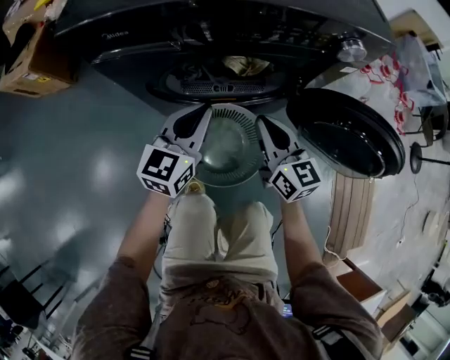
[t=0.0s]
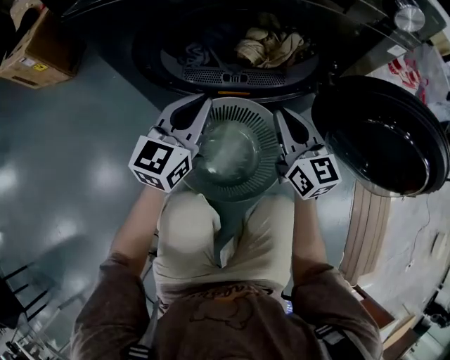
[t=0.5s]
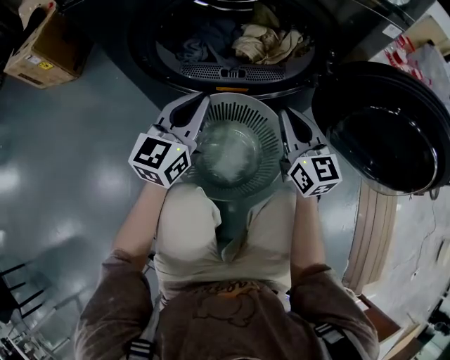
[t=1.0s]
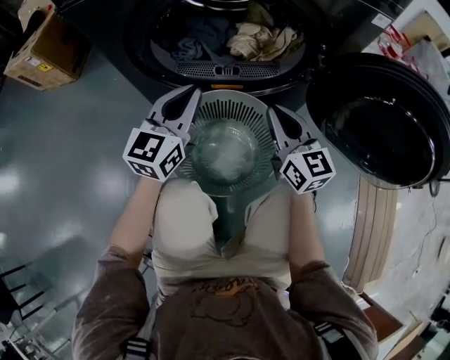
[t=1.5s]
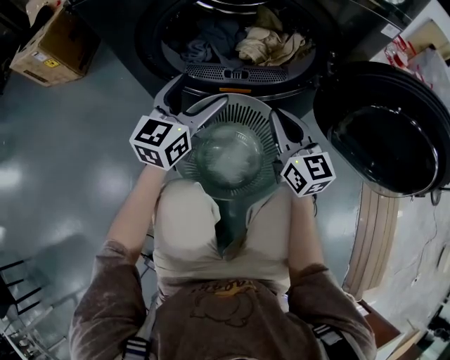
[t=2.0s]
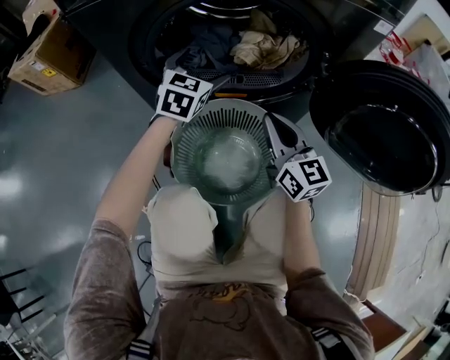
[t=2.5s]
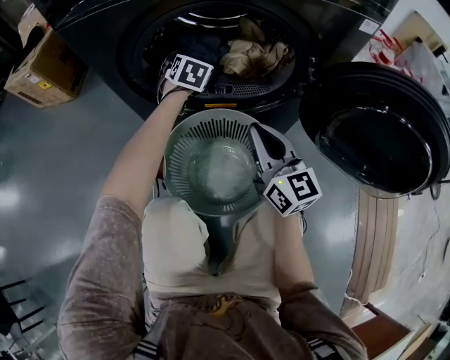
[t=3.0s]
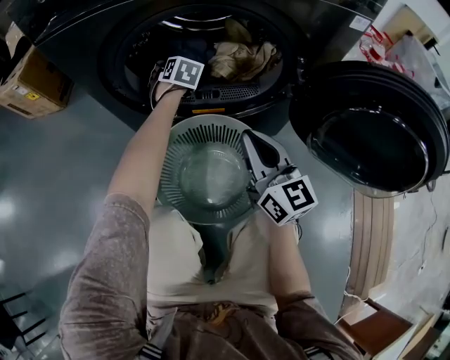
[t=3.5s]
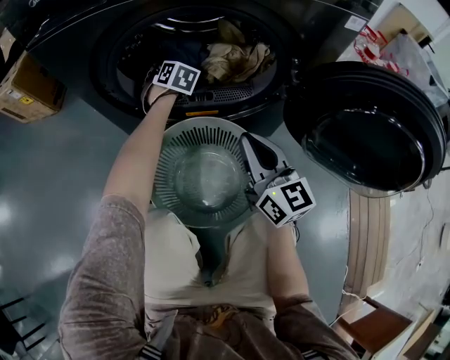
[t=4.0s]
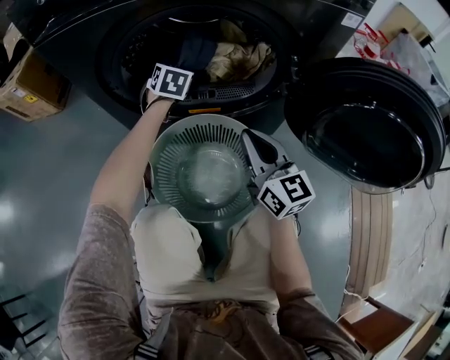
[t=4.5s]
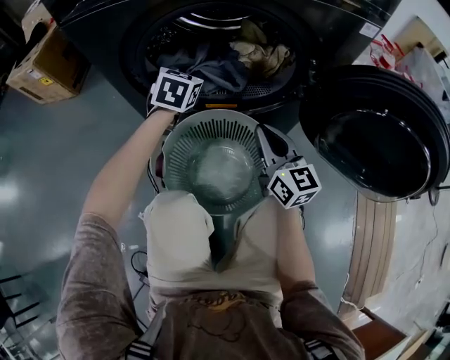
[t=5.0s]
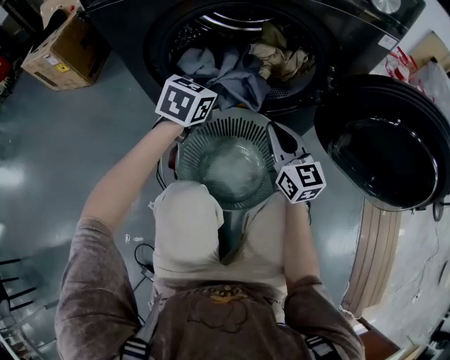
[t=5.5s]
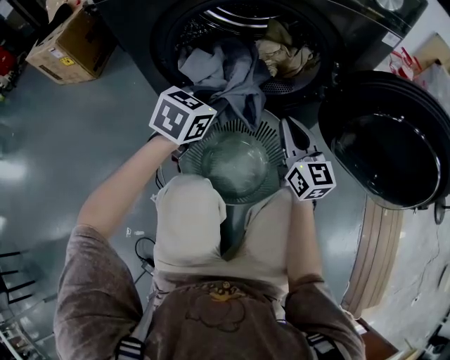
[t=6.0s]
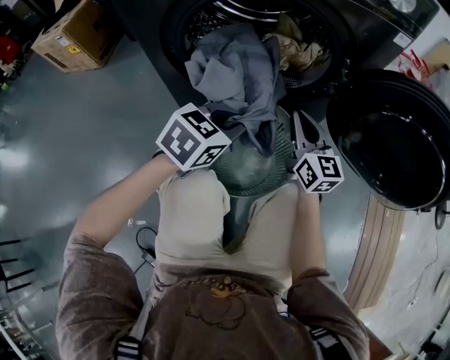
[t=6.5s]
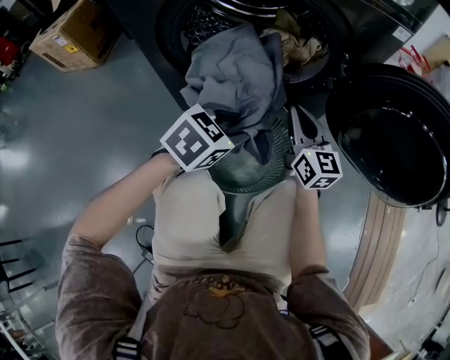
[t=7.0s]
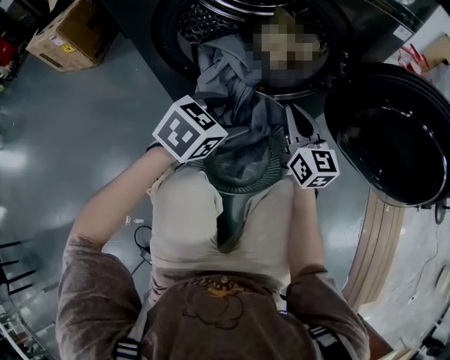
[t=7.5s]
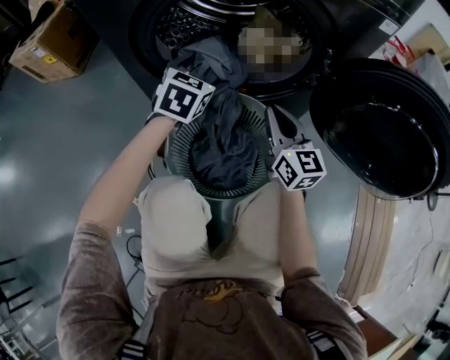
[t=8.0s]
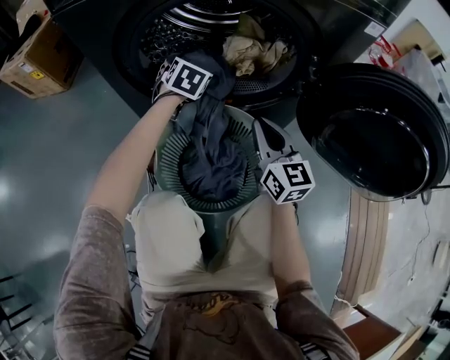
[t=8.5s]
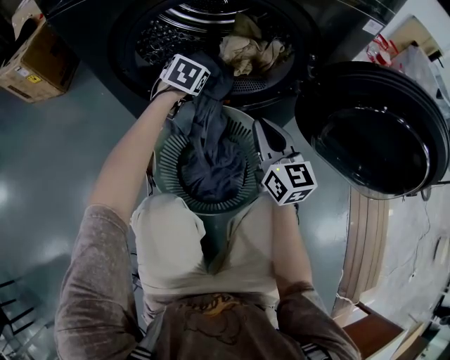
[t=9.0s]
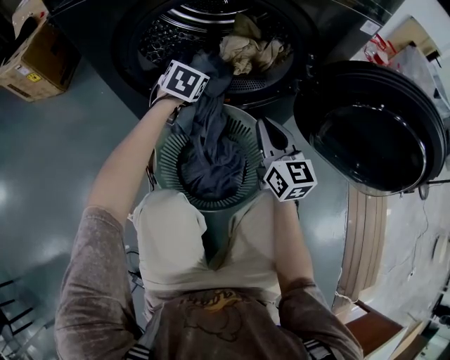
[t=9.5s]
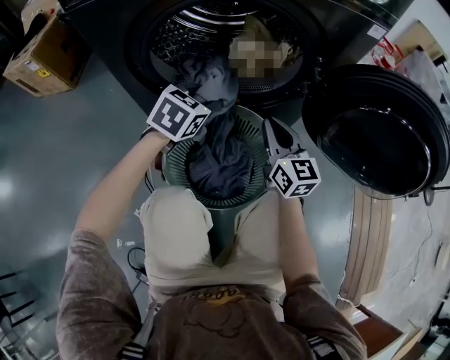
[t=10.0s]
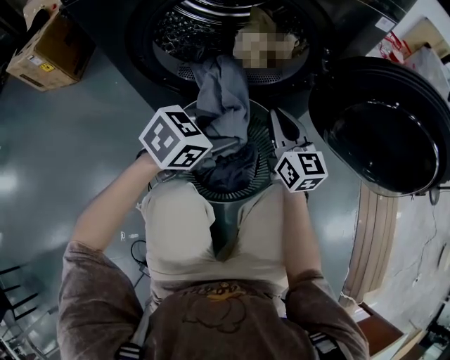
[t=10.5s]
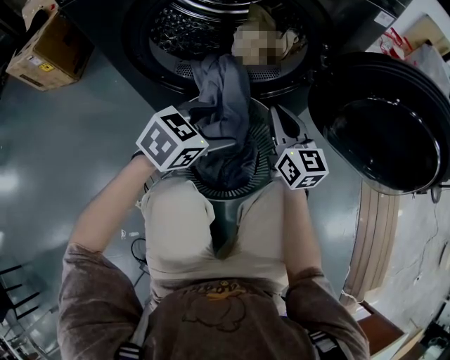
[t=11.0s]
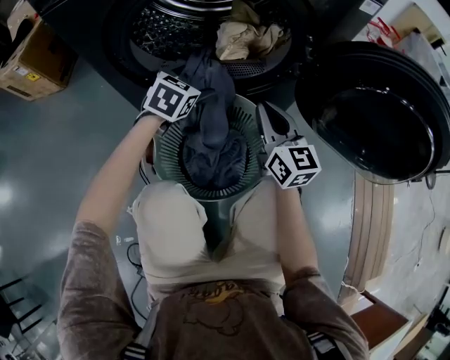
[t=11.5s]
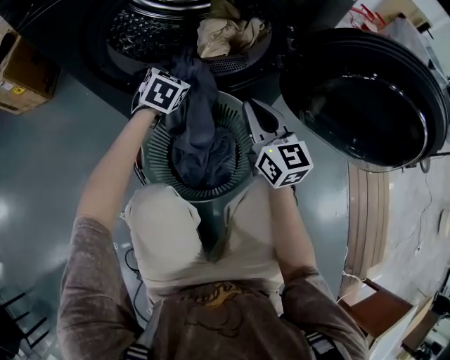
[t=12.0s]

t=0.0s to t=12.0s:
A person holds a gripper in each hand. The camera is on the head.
t=0.0s to t=2.0s: The grippers both shift downward by approximately 15 cm. The left gripper opens its fingers.
t=2.0s to t=4.0s: The left gripper travels forward and downward by approximately 25 cm, tilts its fingers about 40 degrees downward, and closes up.
t=4.0s to t=6.0s: The left gripper moves backward and upward, roughly 25 cm, and turns by about 40 degrees.
t=6.0s to t=8.0s: The left gripper is displaced forward by approximately 5 cm, and opens up.
t=8.0s to t=10.0s: The left gripper moves about 10 cm forward and comes back, and closes.
t=10.0s to t=12.0s: The left gripper is displaced forward and downward by some 10 cm, and opens.

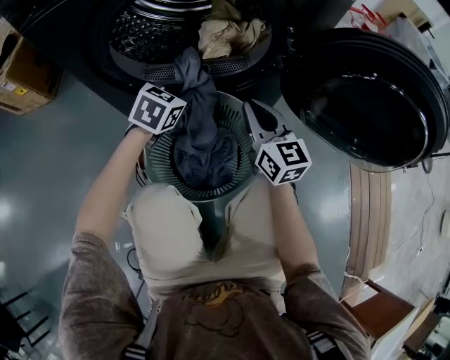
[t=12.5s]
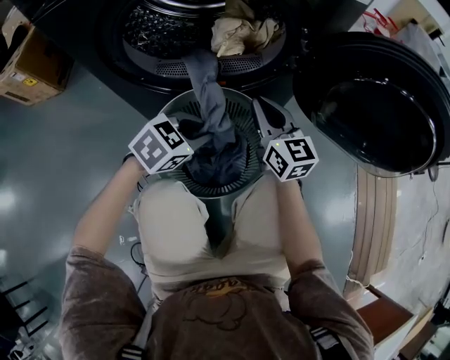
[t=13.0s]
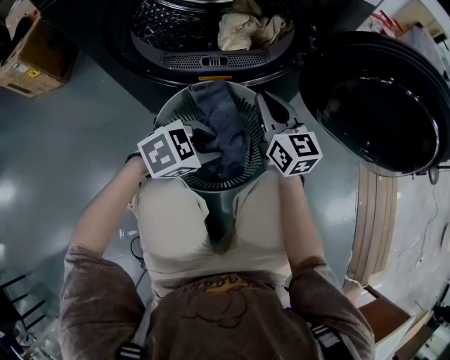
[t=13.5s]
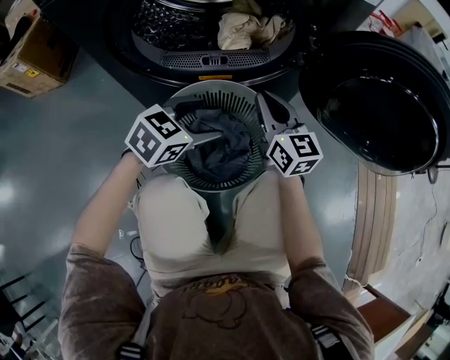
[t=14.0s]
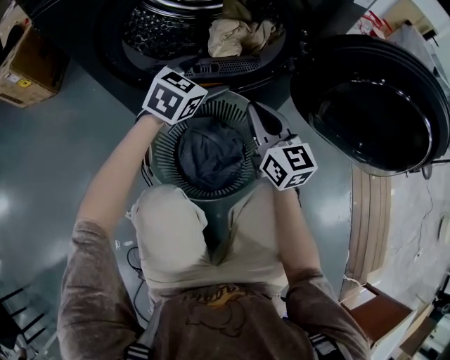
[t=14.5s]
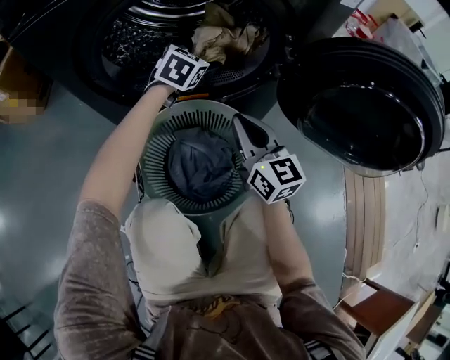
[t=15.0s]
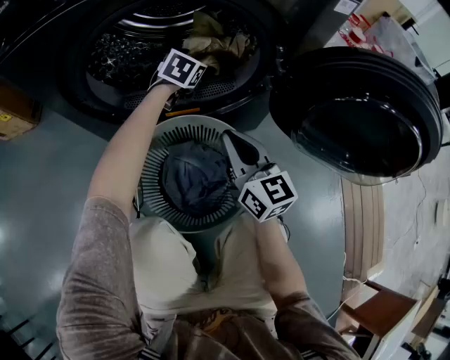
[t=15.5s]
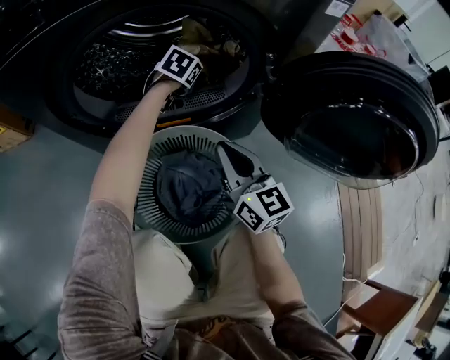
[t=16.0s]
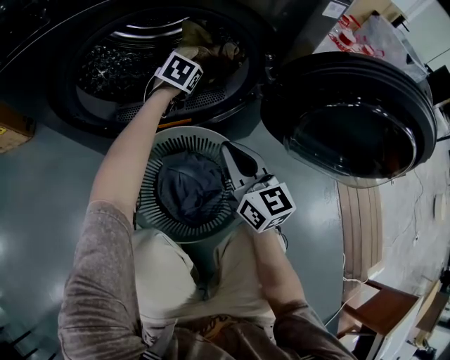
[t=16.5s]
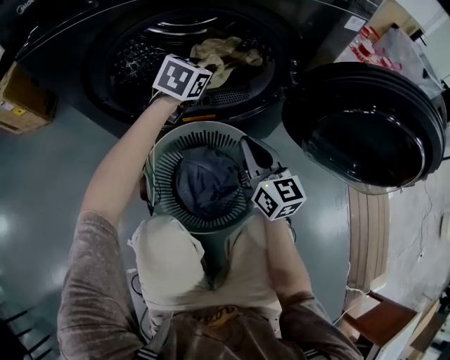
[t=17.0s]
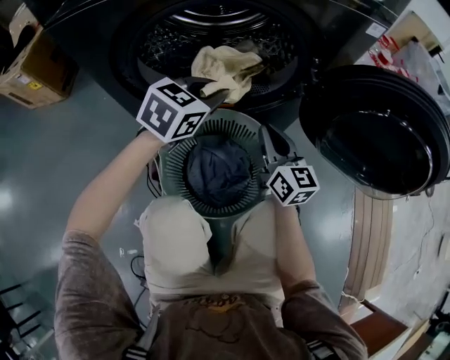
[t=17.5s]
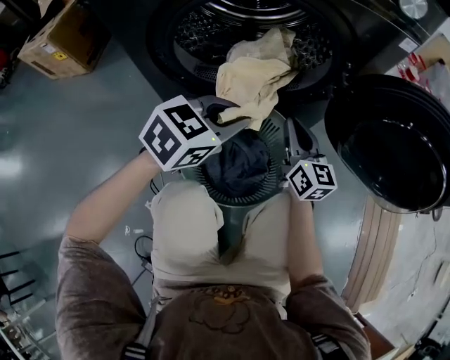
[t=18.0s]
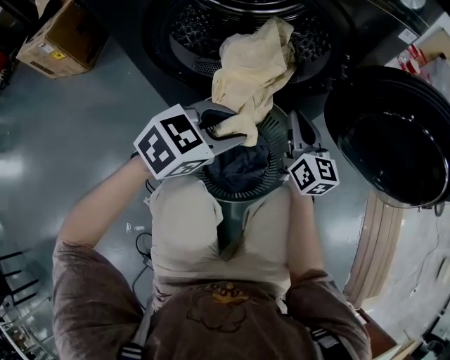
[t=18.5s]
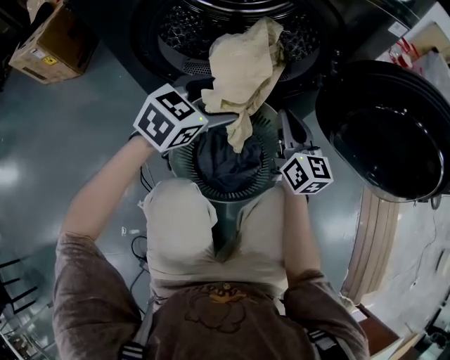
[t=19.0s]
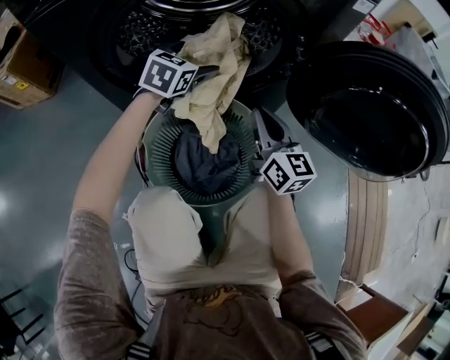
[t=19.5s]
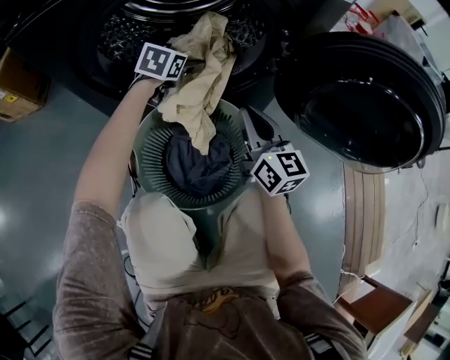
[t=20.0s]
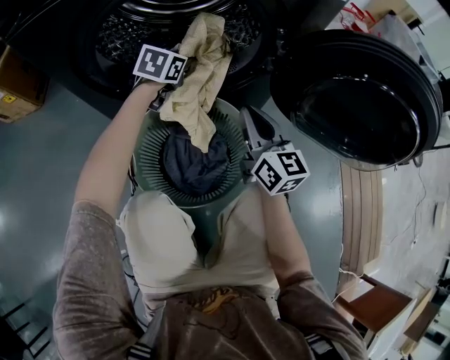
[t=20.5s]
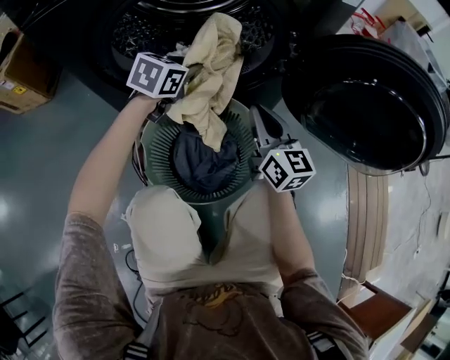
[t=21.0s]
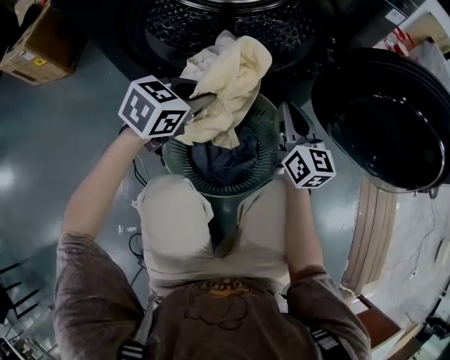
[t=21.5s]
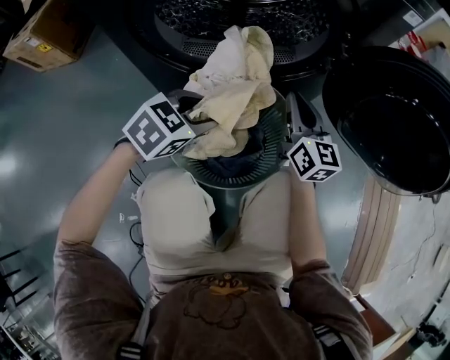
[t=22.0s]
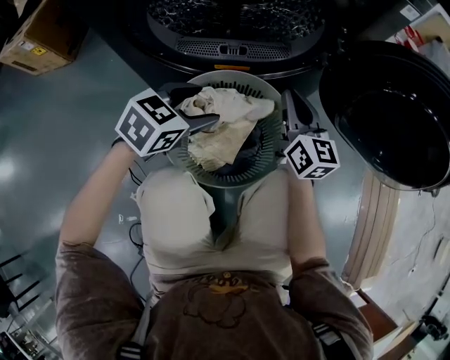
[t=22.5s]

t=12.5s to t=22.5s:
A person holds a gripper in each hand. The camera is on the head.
t=12.5s to t=14.5s: The left gripper moves upward, about 5 cm, travels backward and back again, approximately 15 cm each way, and opens.
t=14.5s to t=16.5s: The left gripper shifts some 20 cm forward and downward, and closes up.
t=16.5s to t=18.5s: The left gripper heads backward, covering approximately 35 cm, and turns by roughly 20 degrees.
t=18.5s to t=20.5s: The left gripper goes roughly 25 cm forward, turns by roughly 20 degrees, and opens, then closes again.
t=20.5s to t=22.5s: The left gripper is displaced backward by about 25 cm, and opens.

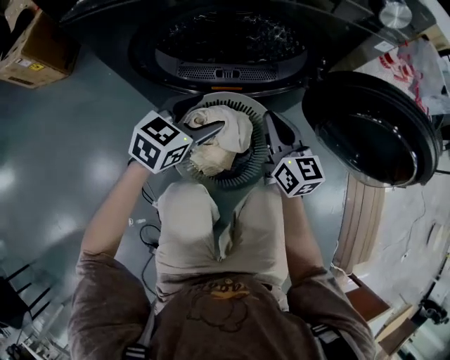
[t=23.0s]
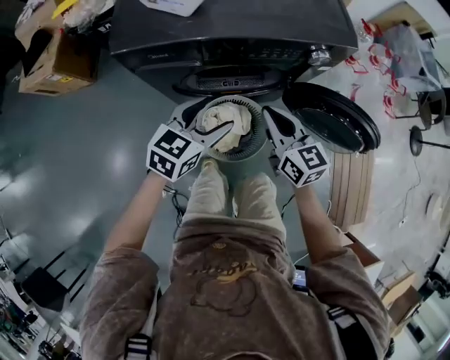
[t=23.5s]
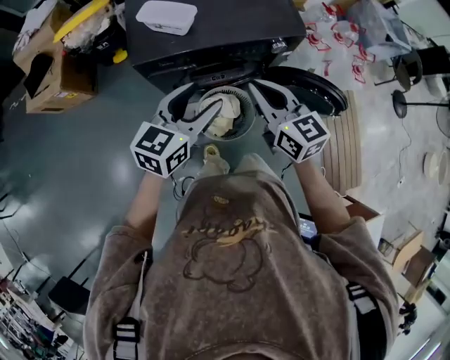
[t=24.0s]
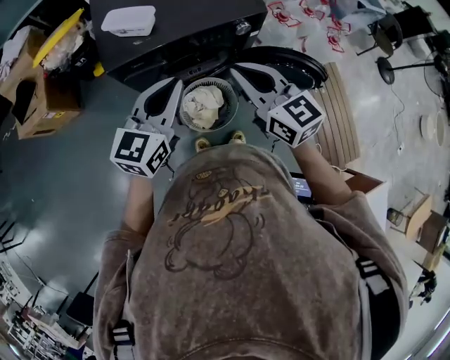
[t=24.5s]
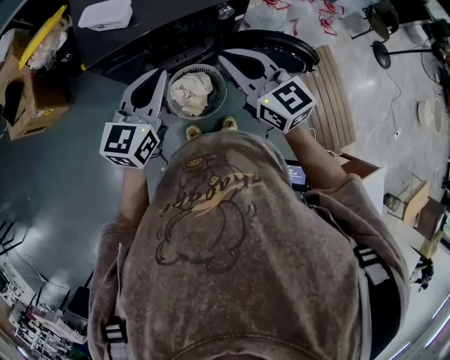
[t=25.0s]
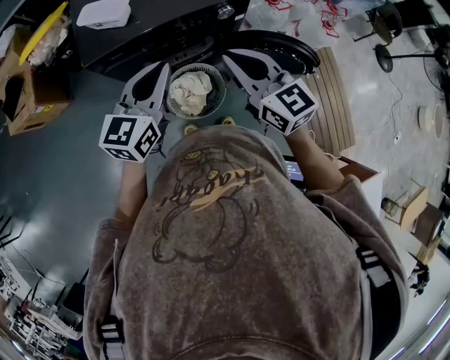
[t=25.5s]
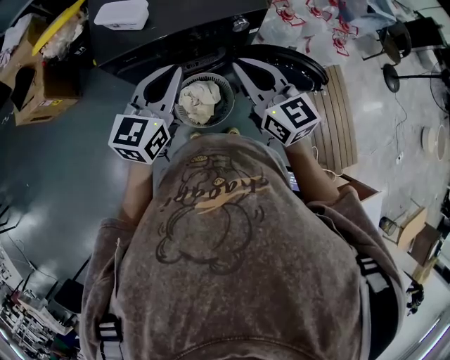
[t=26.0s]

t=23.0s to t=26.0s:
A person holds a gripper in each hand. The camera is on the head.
t=23.0s to t=24.5s: The grippers both shift upward by some 60 cm. The left gripper turns by roughly 20 degrees, and closes up.
t=24.5s to t=26.0s: There are only small adjustments of the grippers.

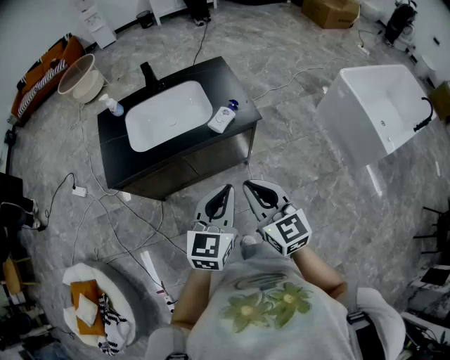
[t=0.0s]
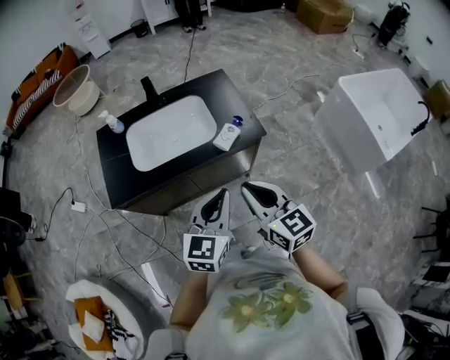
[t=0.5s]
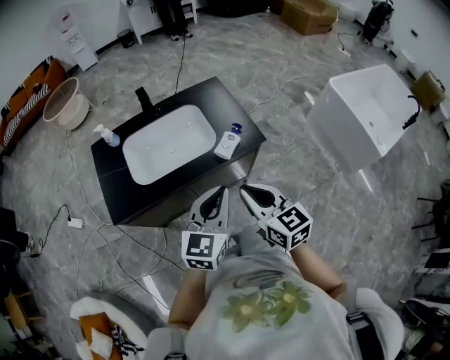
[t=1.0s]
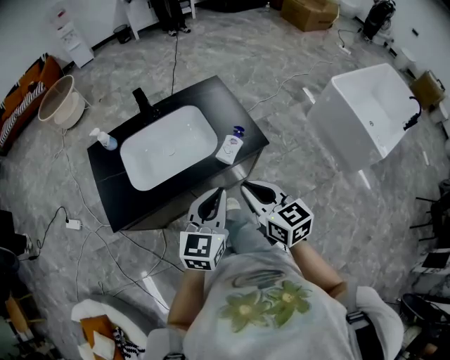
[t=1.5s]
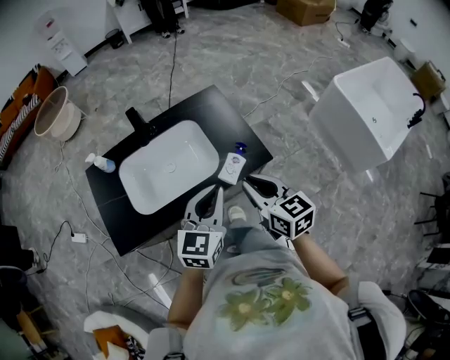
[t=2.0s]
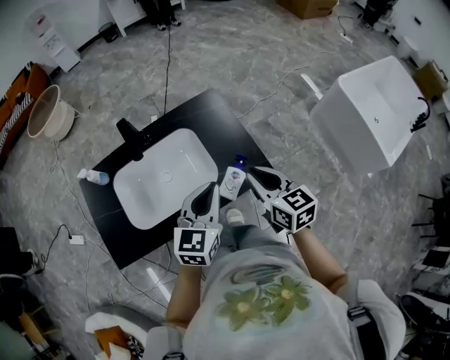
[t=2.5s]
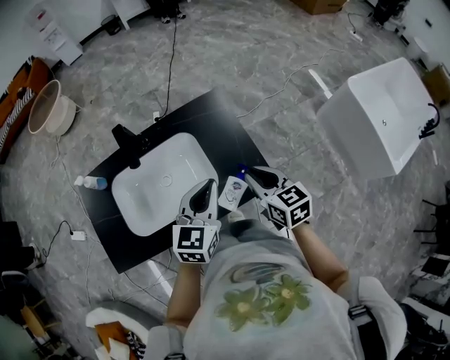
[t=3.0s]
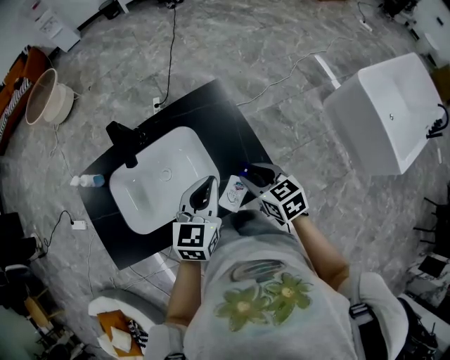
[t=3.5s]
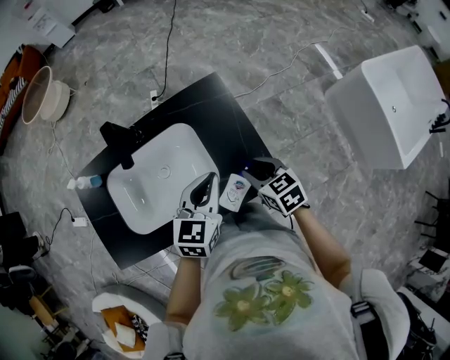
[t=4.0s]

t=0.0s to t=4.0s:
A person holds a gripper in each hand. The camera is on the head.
t=0.0s to t=2.0s: The two grippers go roughly 30 cm forward.
t=2.0s to t=4.0s: The grippers both shift forward and downward by approximately 25 cm. The right gripper rotates about 30 degrees, and opens its fingers.
